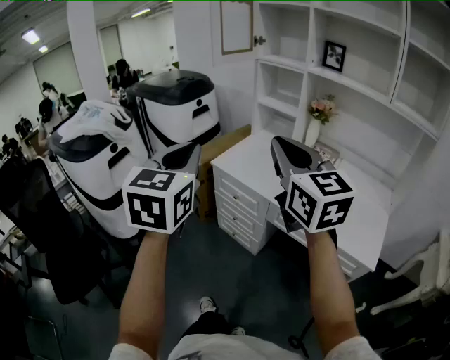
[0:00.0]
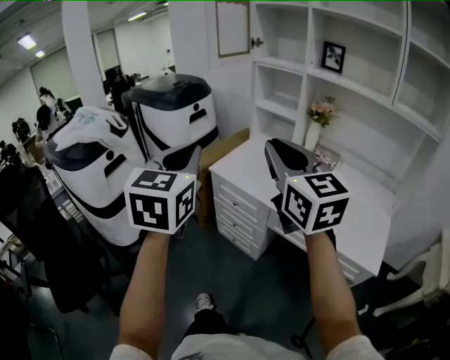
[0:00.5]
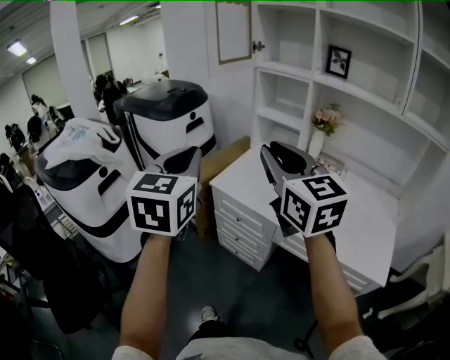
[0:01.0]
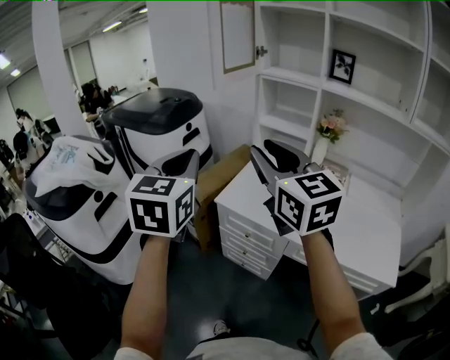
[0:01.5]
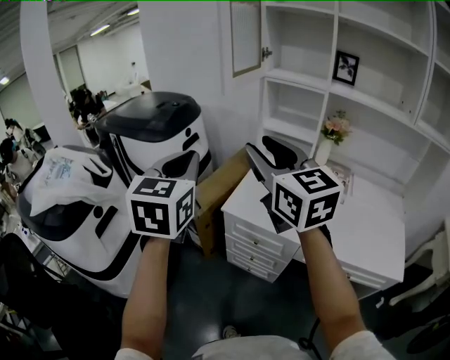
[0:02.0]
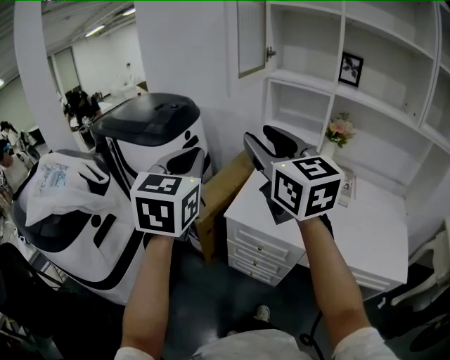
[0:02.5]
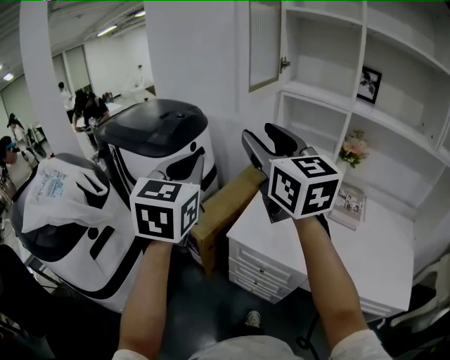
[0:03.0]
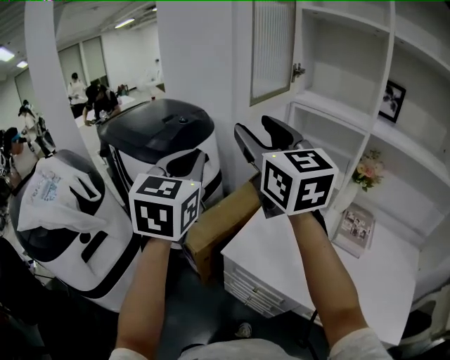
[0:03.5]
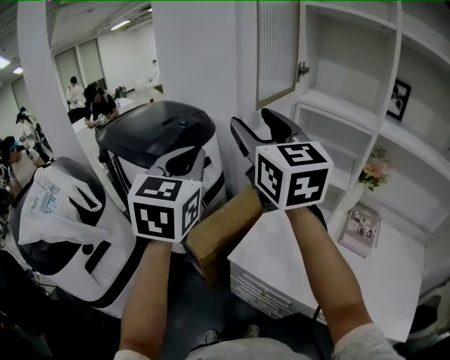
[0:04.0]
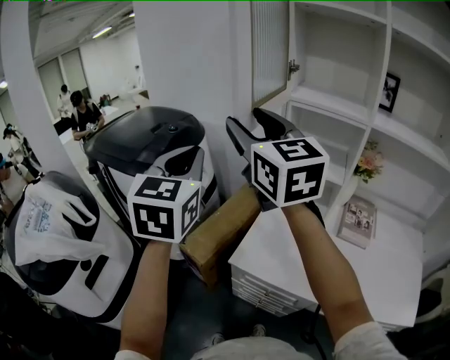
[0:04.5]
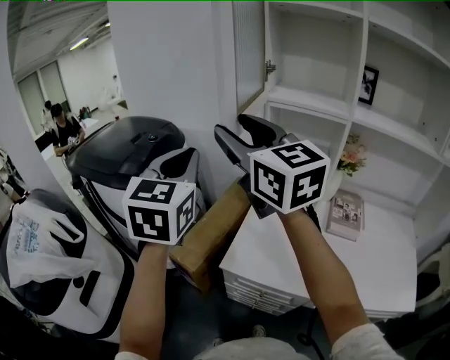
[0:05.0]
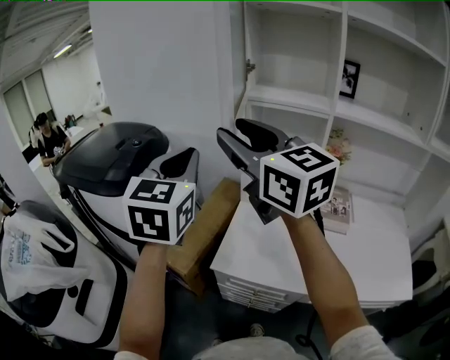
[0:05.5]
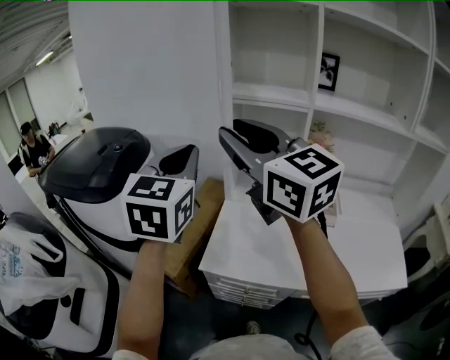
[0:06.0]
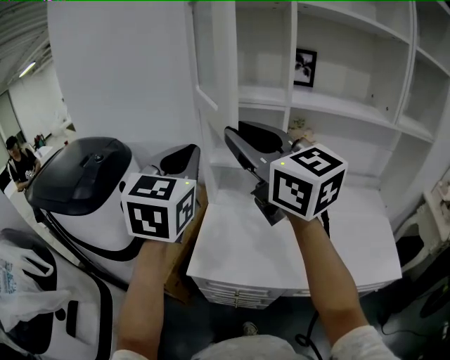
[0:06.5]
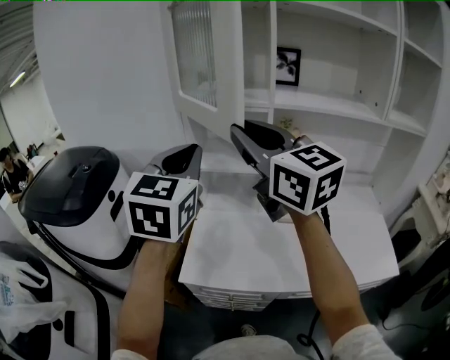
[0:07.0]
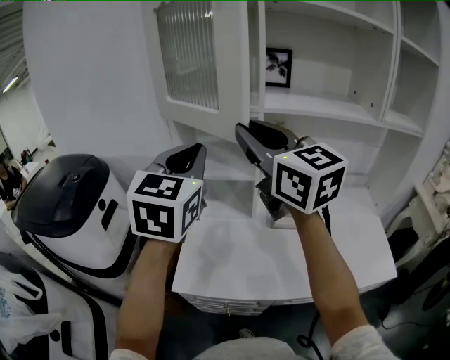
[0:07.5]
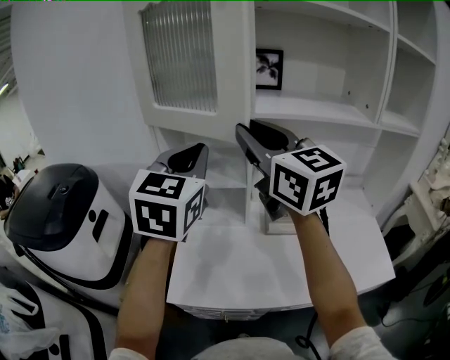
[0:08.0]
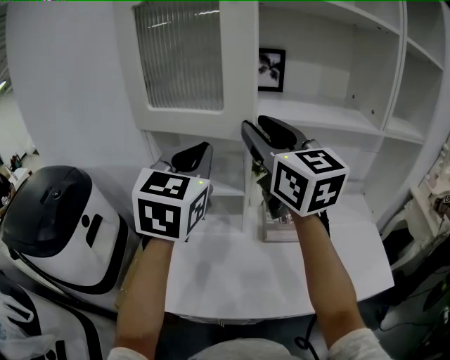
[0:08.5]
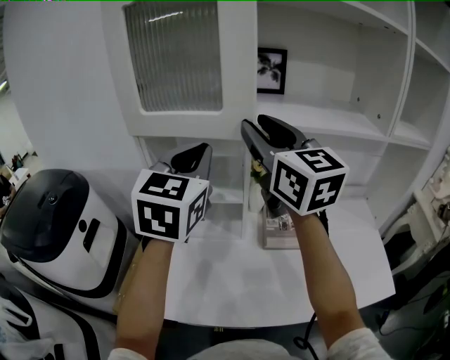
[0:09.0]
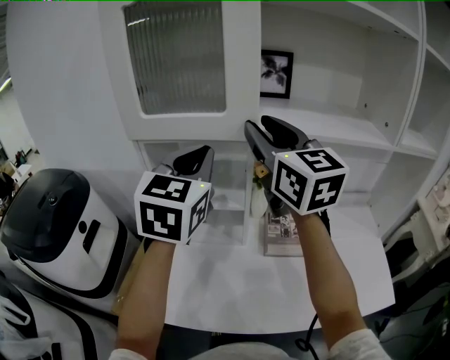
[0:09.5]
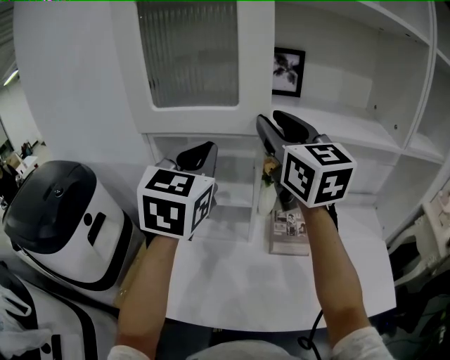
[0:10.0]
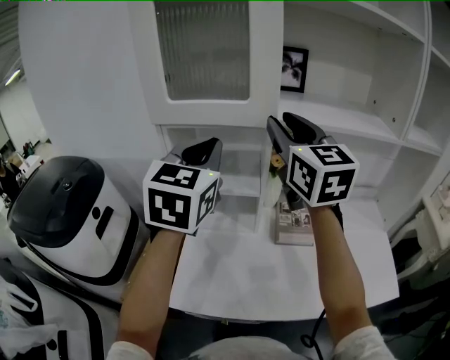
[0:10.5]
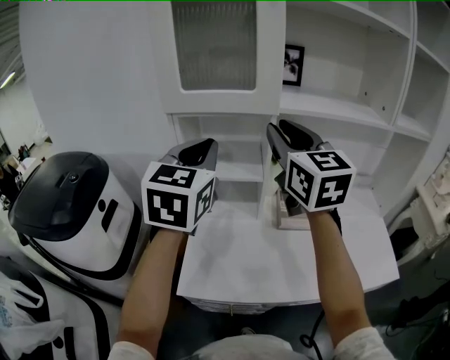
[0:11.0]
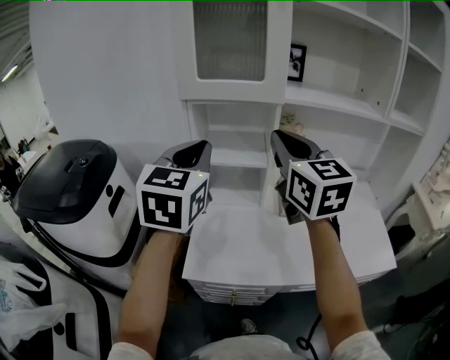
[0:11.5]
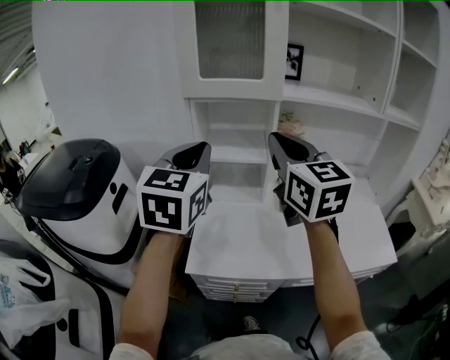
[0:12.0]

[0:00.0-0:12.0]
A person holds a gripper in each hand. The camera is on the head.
0:00.0 to 0:02.0: The right gripper shifts approximately 30 cm forward and to the left, and opens, while the left gripper travels forward by roughly 30 cm.
0:02.0 to 0:04.0: Both grippers move forward, approximately 25 cm. The right gripper opens.
0:04.0 to 0:06.0: Both grippers move to the right, roughly 10 cm. The left gripper turns by some 20 degrees. The right gripper closes.
0:06.0 to 0:08.0: The left gripper is displaced to the right by some 20 cm, while the right gripper heads to the right and forward, covering some 20 cm, and changes its angle by approximately 20 degrees.
0:08.0 to 0:10.0: Both grippers move forward, some 10 cm.
0:10.0 to 0:12.0: The right gripper heads backward, covering roughly 20 cm, and closes its fingers; the left gripper is displaced backward and to the left by some 20 cm.

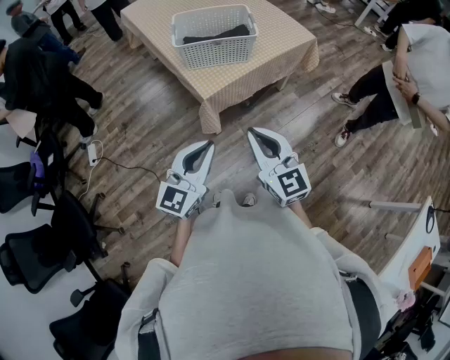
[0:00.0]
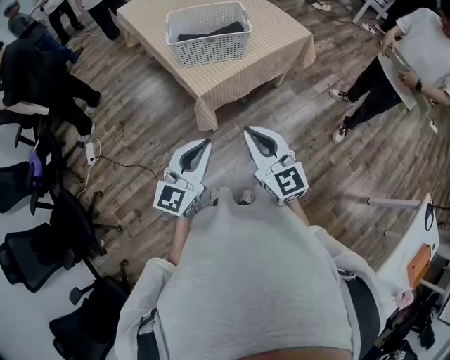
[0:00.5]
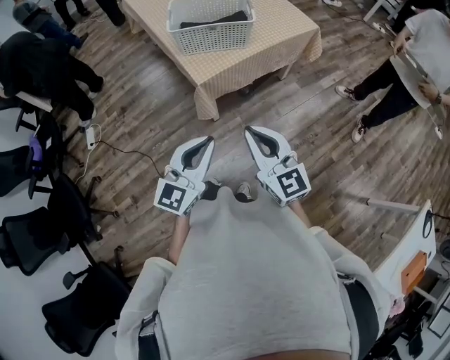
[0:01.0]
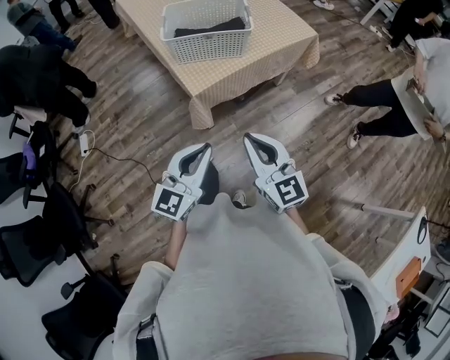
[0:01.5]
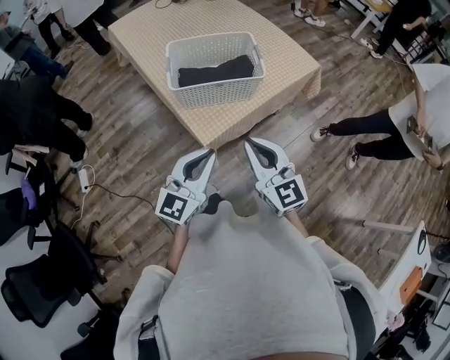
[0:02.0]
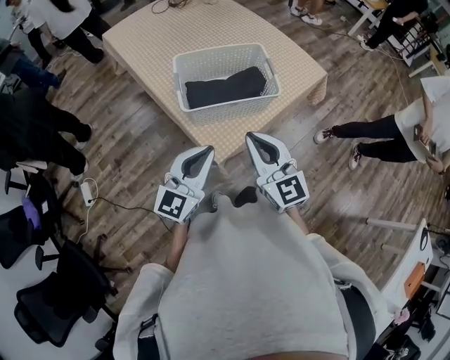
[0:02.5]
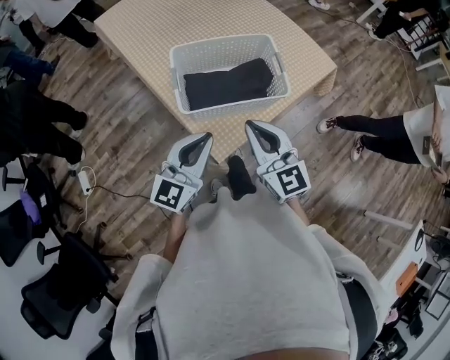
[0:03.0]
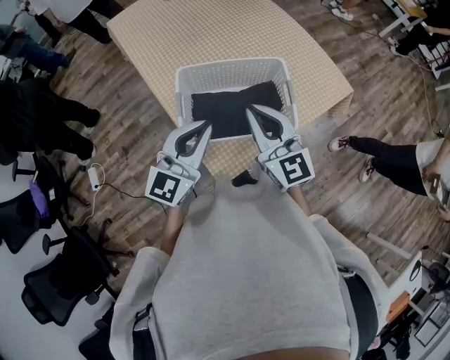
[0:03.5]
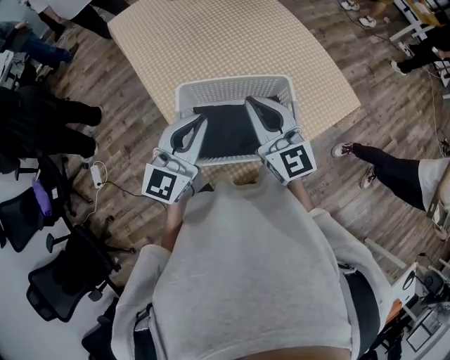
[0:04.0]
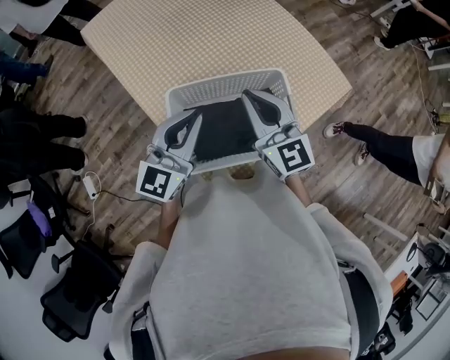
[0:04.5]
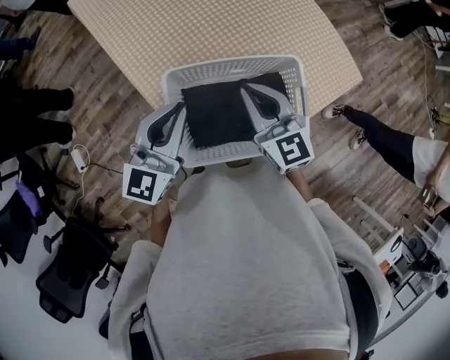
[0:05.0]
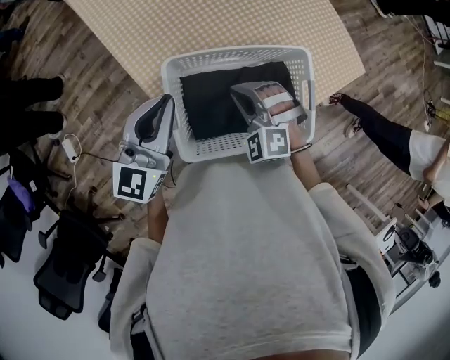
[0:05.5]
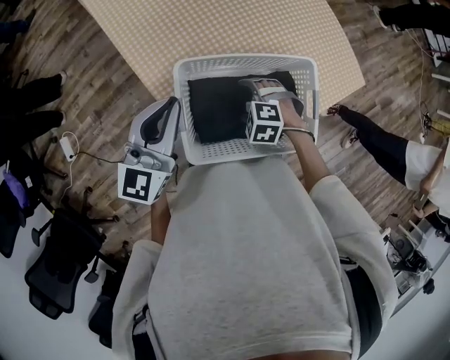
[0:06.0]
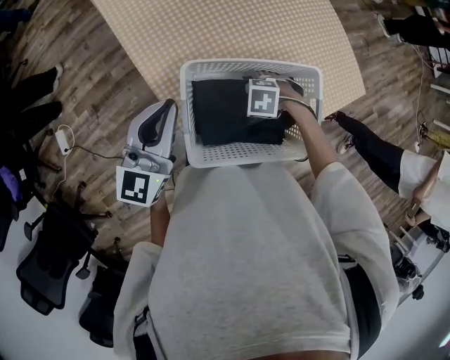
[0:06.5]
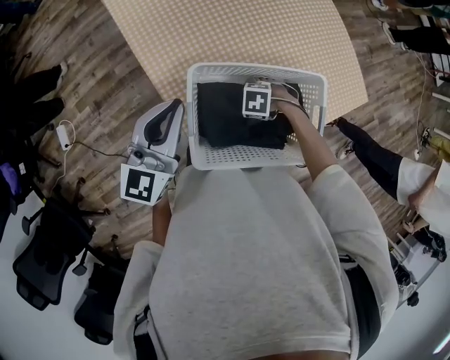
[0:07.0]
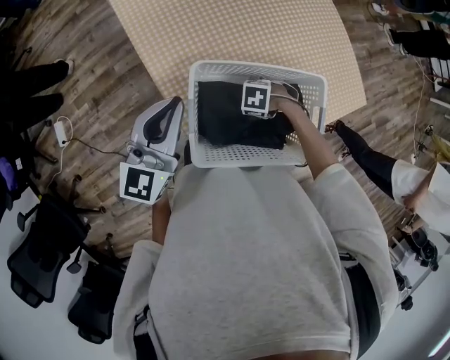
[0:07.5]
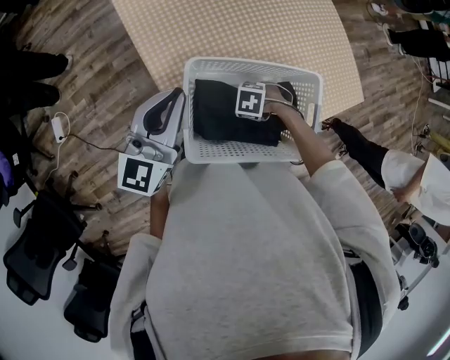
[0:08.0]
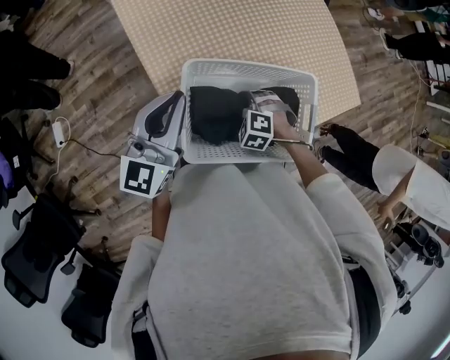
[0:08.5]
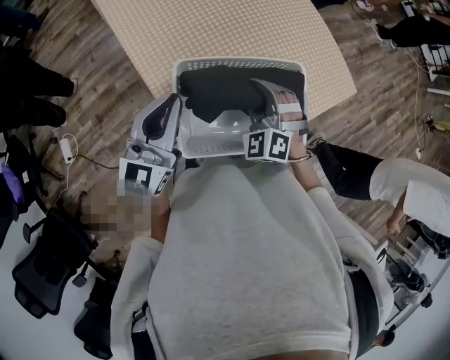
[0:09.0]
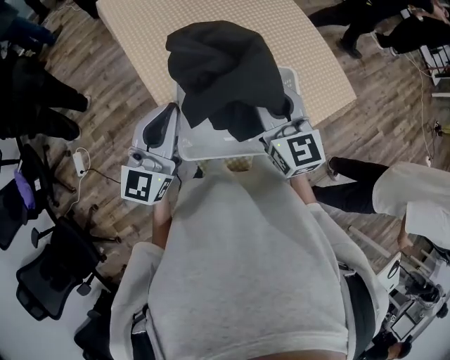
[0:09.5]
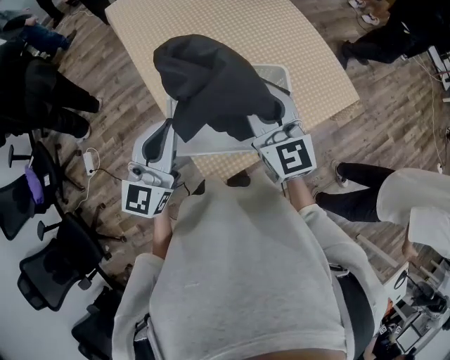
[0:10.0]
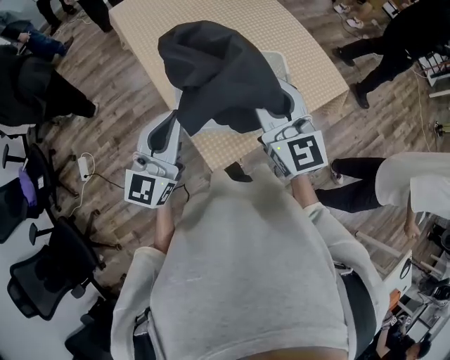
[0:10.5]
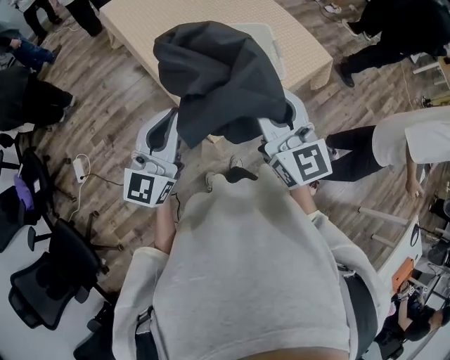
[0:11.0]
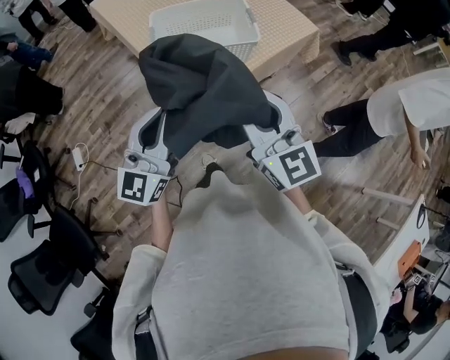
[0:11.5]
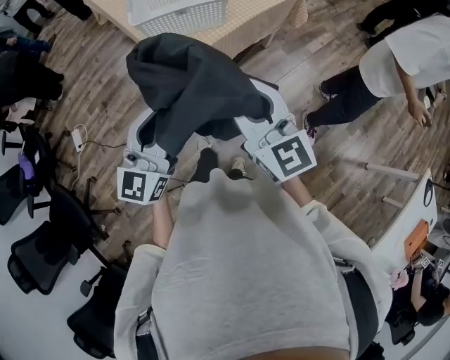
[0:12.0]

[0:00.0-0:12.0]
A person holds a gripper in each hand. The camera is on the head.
0:00.0 to 0:02.0: Both grippers travel together forward, some 20 cm.
0:02.0 to 0:04.0: Both grippers move forward, about 40 cm.
0:04.0 to 0:06.0: The left gripper ends up about 15 cm from where it was. Meanwhile the right gripper is displaced downward by about 30 cm, tilts its fingers some 70 degrees downward, and opens its fingers.
0:06.0 to 0:08.0: The right gripper goes some 5 cm downward, changes its angle by about 30 degrees, and closes its fingers.
0:08.0 to 0:10.0: The right gripper travels upward by roughly 35 cm, and tilts its fingers about 70 degrees upward. Meanwhile the left gripper shifts by some 15 cm.
0:10.0 to 0:12.0: The two grippers travel together, backward, some 50 cm.

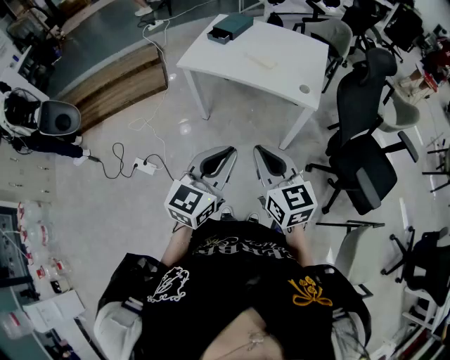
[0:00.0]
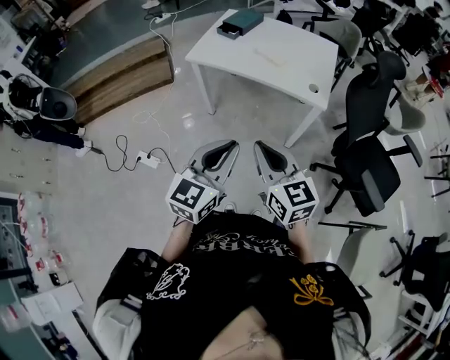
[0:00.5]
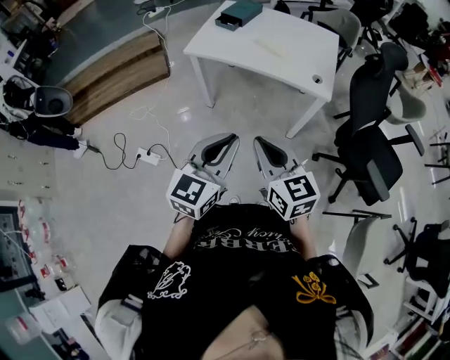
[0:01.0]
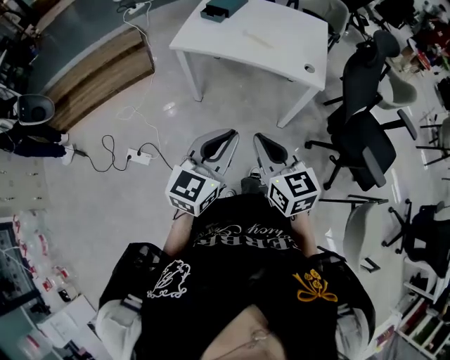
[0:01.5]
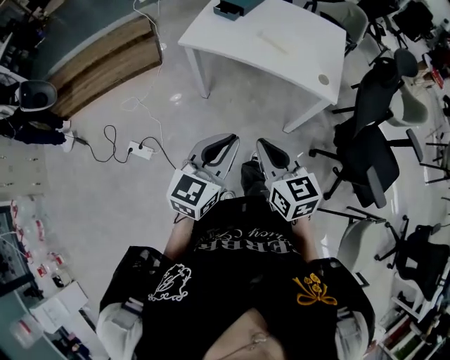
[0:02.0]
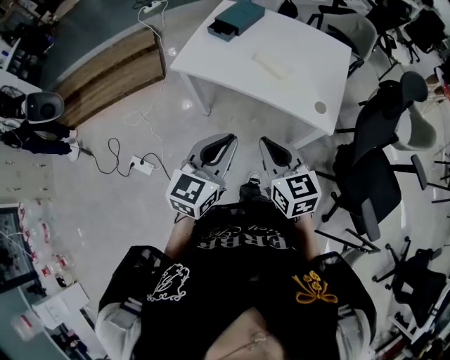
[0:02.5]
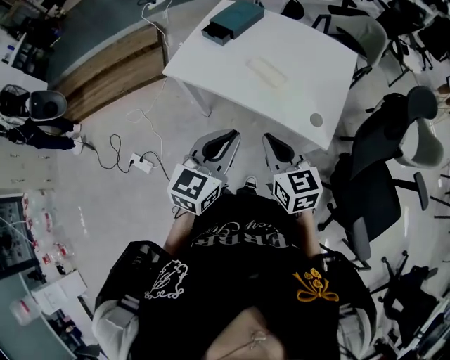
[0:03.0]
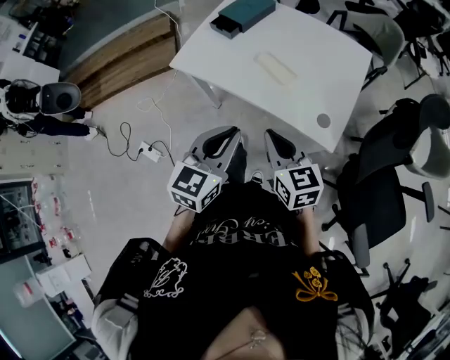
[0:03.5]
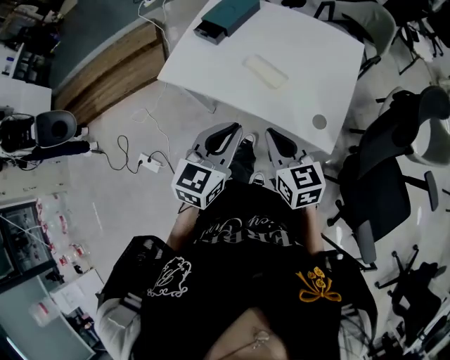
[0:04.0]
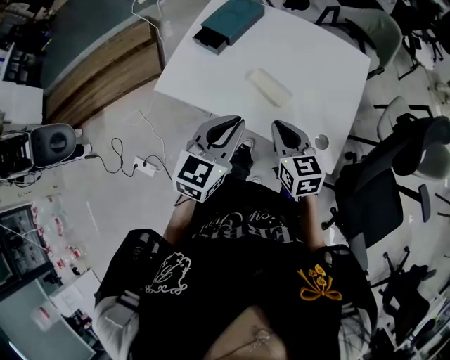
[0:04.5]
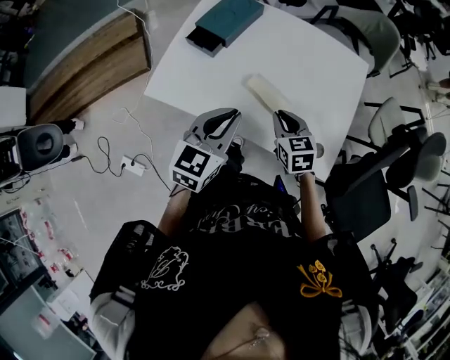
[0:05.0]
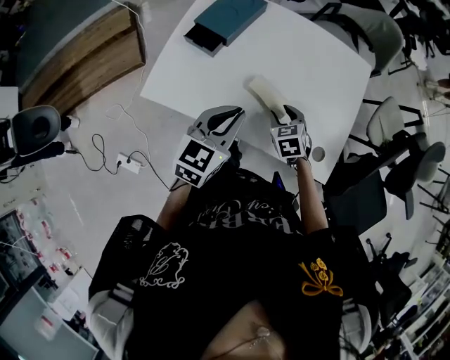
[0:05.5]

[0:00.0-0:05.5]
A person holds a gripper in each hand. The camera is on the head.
0:00.0 to 0:02.0: Both grippers travel together forward, to the left and downward, roughly 15 cm.
0:02.0 to 0:03.5: Both grippers travel together forward and to the right, some 30 cm.
0:03.5 to 0:05.5: The left gripper is displaced forward by some 30 cm. The right gripper goes about 35 cm forward and downward, tips its fingers downward by approximately 30 degrees, and opens.
